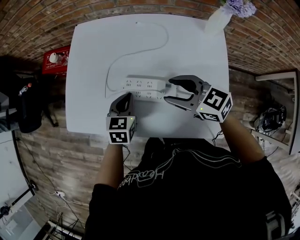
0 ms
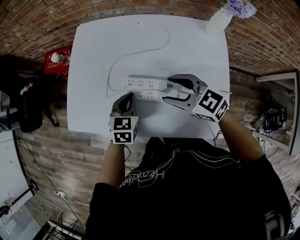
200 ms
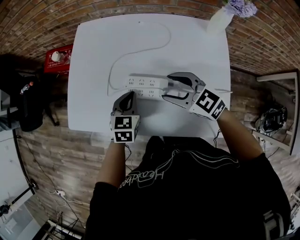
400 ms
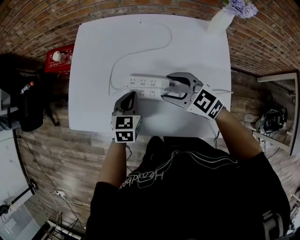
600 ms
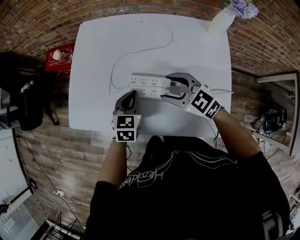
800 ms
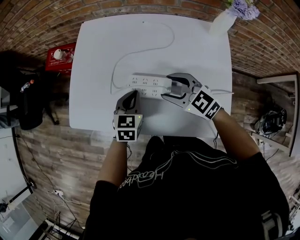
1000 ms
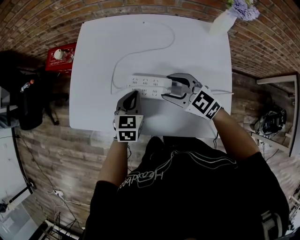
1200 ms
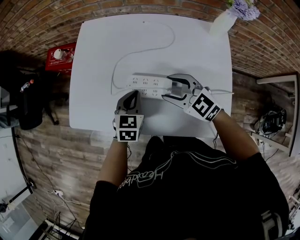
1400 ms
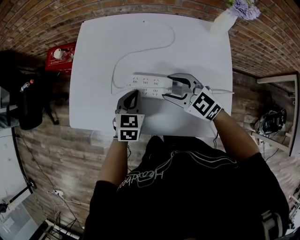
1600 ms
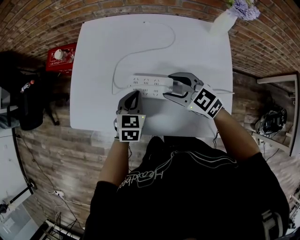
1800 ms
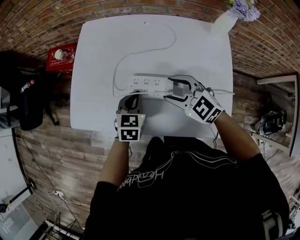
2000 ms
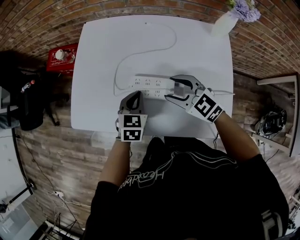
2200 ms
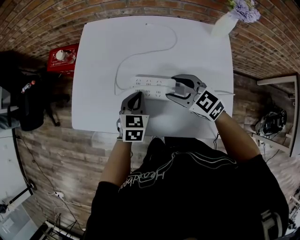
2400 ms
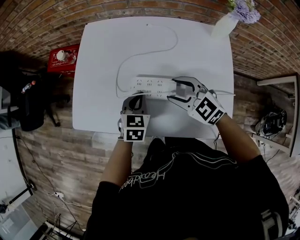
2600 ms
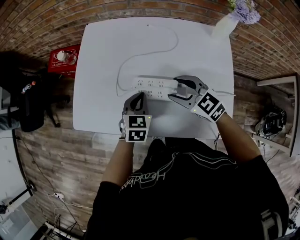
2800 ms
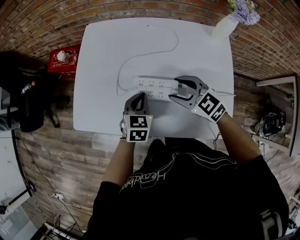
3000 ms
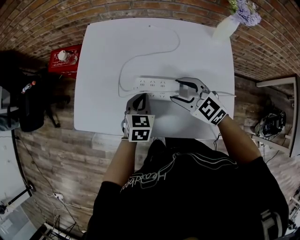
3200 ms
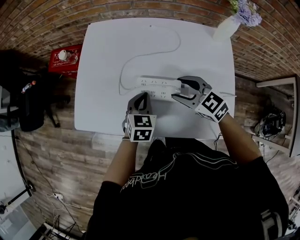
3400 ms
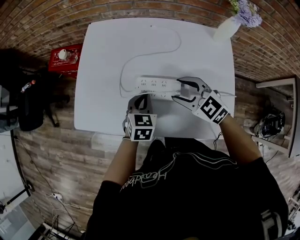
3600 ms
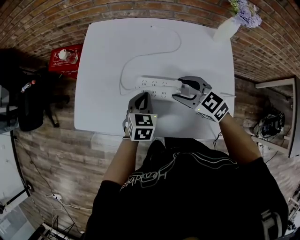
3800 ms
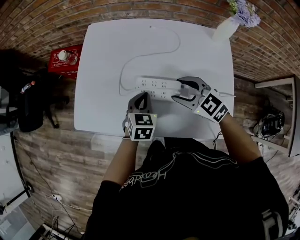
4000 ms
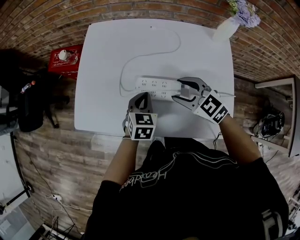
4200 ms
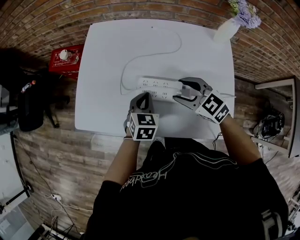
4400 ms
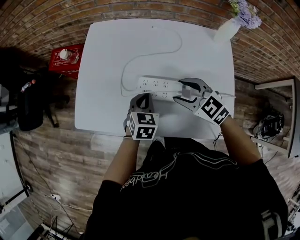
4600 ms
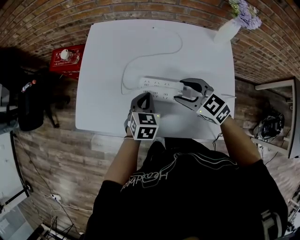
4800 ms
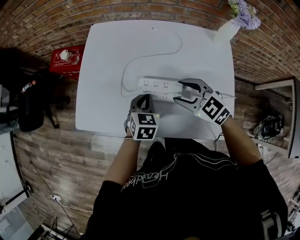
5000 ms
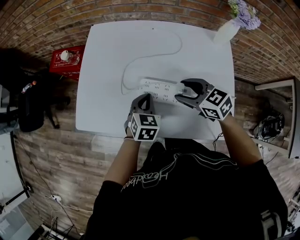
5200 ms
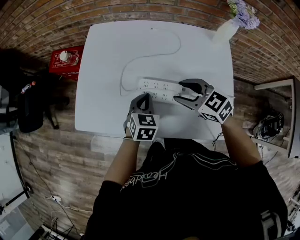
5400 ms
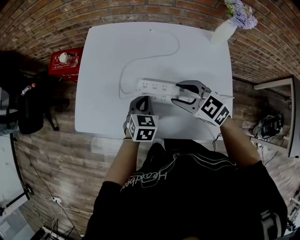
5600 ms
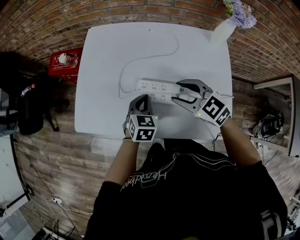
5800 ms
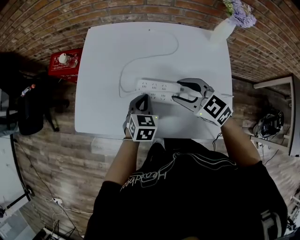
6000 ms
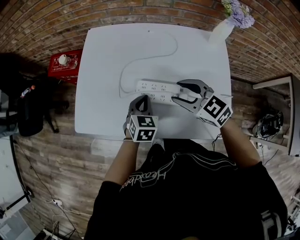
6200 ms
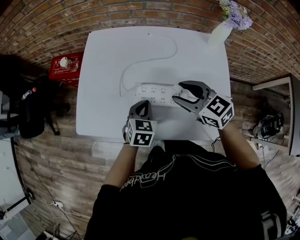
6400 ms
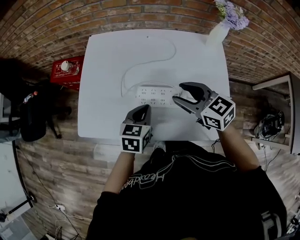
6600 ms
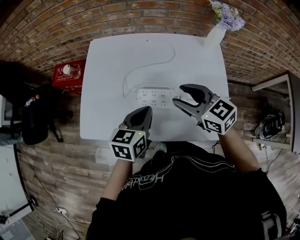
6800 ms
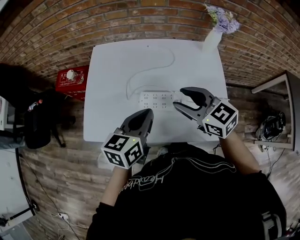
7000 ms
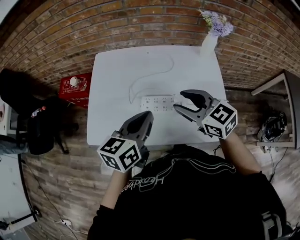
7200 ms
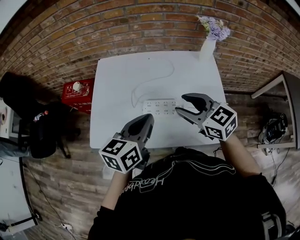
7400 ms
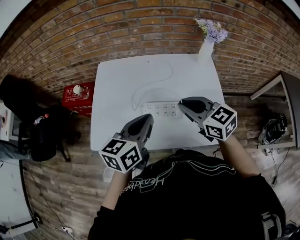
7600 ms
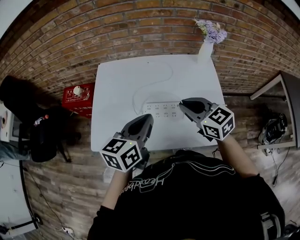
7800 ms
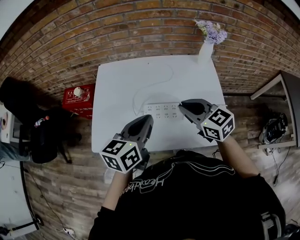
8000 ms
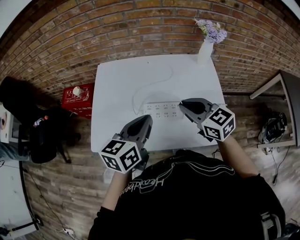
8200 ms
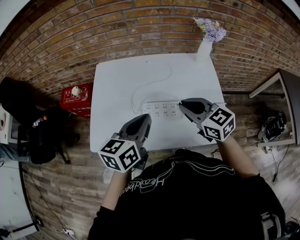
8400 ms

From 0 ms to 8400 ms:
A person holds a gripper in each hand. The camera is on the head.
From 0 ms to 1400 ms: The grippers move only a little.
From 1400 ms to 4200 ms: The grippers stay close to where they were, moving slightly.
From 4200 ms to 5600 ms: The grippers stay close to where they were, moving slightly.
From 5600 ms to 7000 ms: The right gripper heads upward, covering roughly 10 cm, and changes its angle by about 20 degrees, while the left gripper travels upward by some 15 cm, and turns by approximately 40 degrees.
From 7000 ms to 8400 ms: The left gripper changes place by approximately 5 cm. Meanwhile the right gripper closes up.

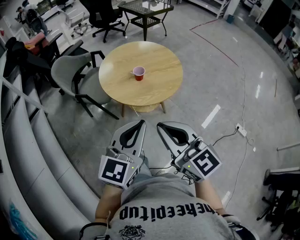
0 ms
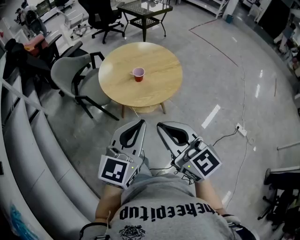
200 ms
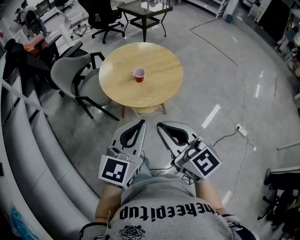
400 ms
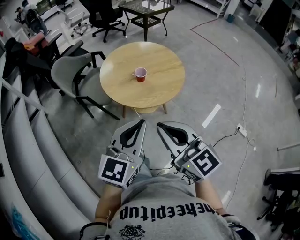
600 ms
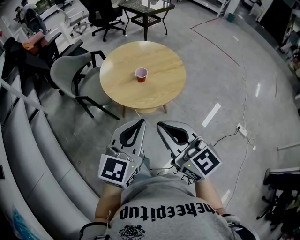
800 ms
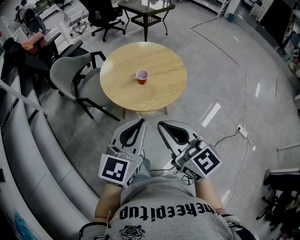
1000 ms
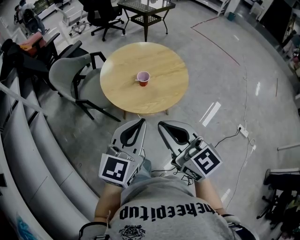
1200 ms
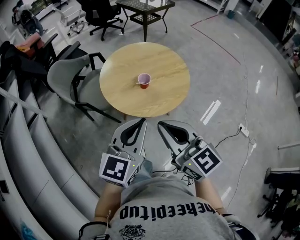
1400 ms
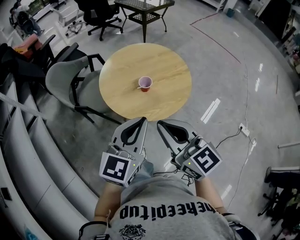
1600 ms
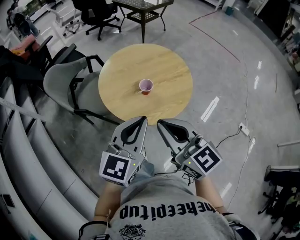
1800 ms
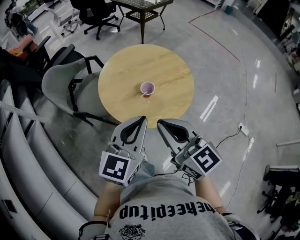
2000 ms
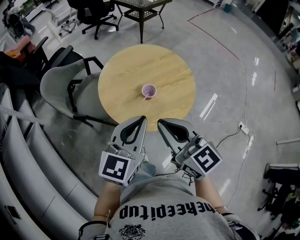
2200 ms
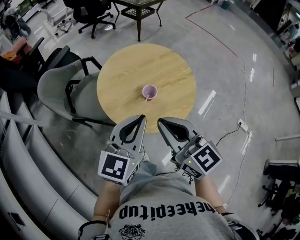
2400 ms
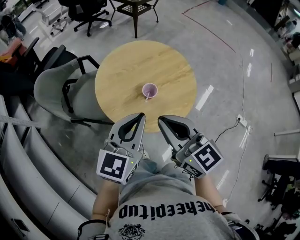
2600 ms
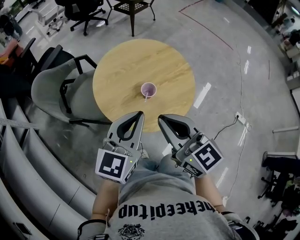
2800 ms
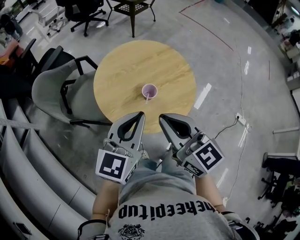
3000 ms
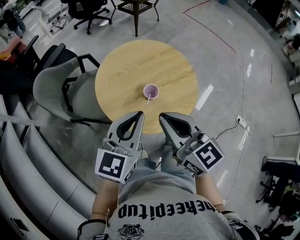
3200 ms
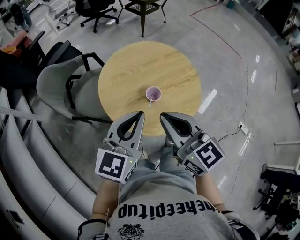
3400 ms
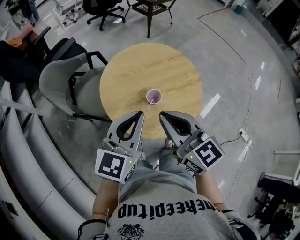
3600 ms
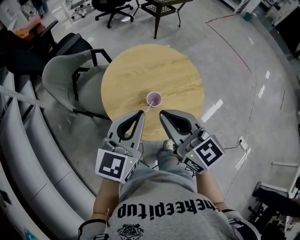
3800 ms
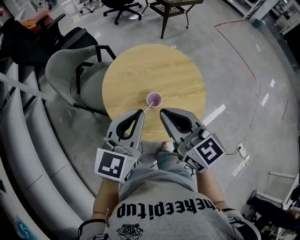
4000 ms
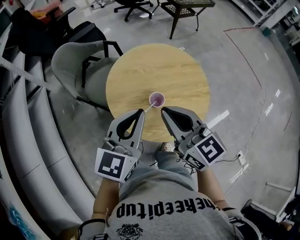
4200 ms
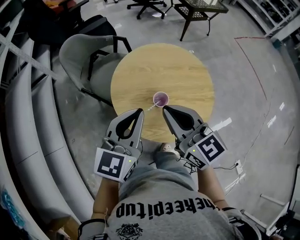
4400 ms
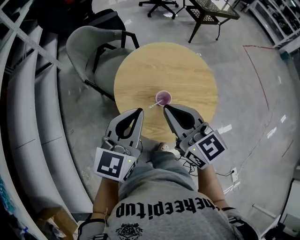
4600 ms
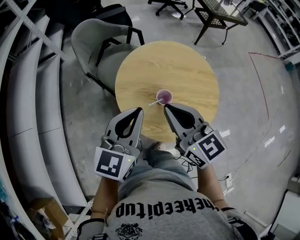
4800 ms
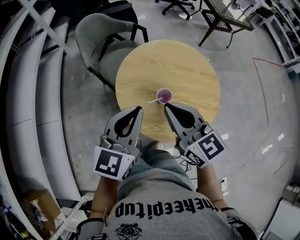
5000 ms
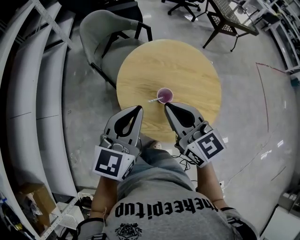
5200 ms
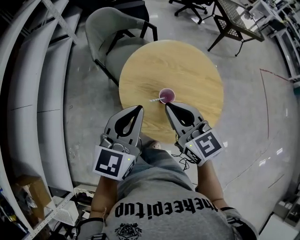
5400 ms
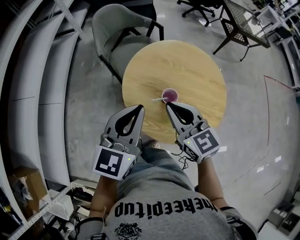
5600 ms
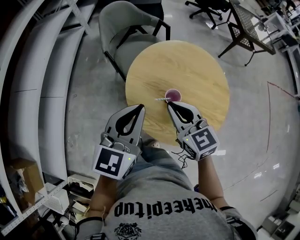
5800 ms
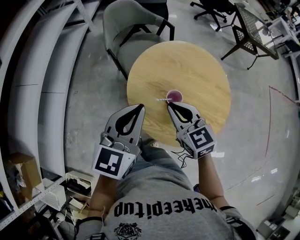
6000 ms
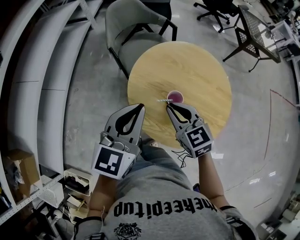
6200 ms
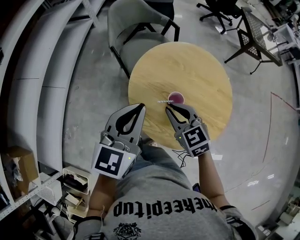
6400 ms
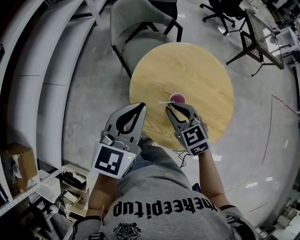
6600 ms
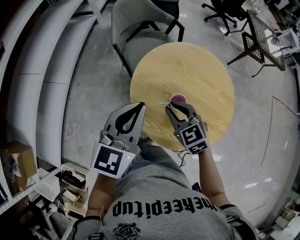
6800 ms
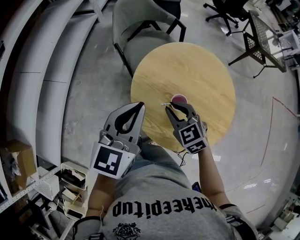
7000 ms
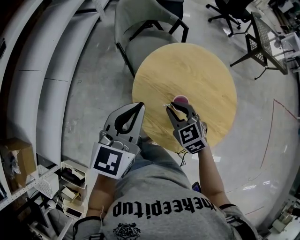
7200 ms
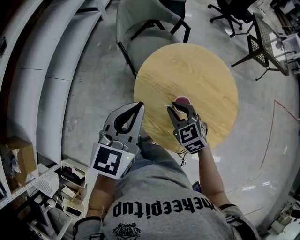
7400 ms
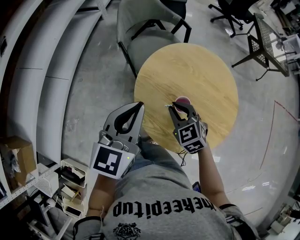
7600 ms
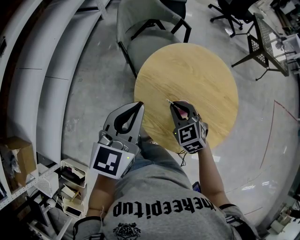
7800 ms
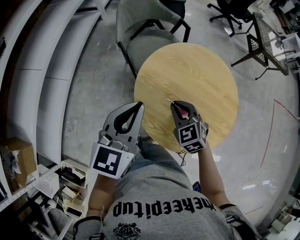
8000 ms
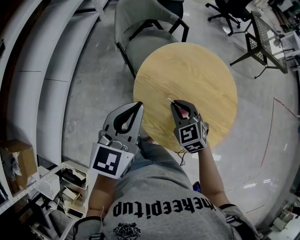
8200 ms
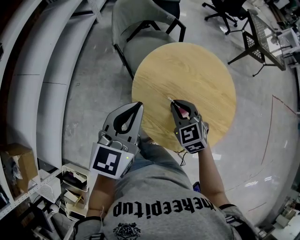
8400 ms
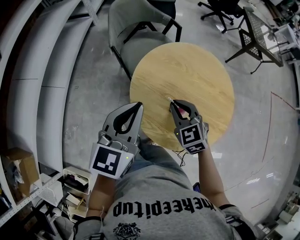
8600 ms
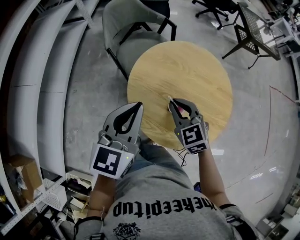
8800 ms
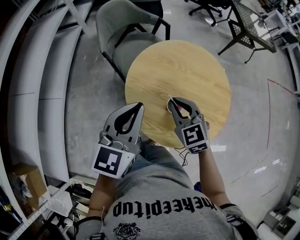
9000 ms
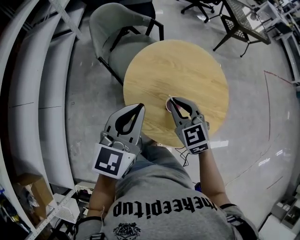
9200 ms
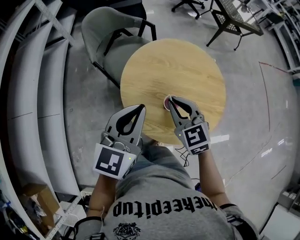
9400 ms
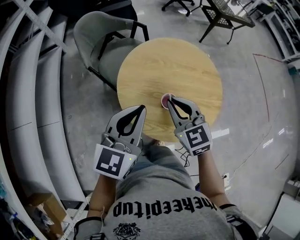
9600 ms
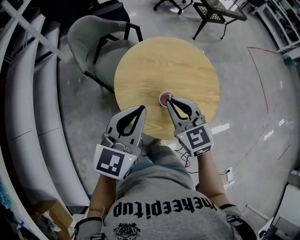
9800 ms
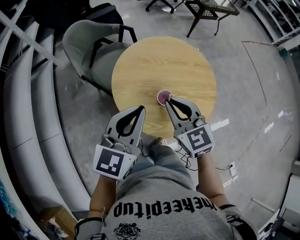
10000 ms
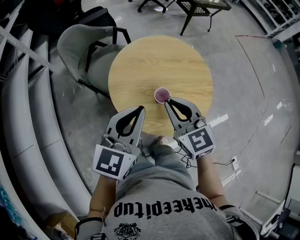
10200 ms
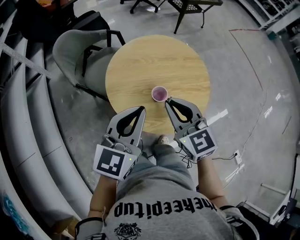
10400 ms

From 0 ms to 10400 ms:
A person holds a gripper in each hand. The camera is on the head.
From 0 ms to 1400 ms: Both grippers travel together forward, some 10 cm.
From 1400 ms to 3000 ms: Both grippers travel together forward, some 15 cm.
From 3000 ms to 4400 ms: The left gripper swivels roughly 30 degrees. Meanwhile the right gripper ends up approximately 10 cm from where it was, and changes its angle by about 30 degrees.
From 4400 ms to 6000 ms: The left gripper turns by roughly 30 degrees; the right gripper shifts about 10 cm downward, and turns by roughly 30 degrees.
From 6000 ms to 7400 ms: The right gripper is displaced downward by roughly 10 cm, and swivels roughly 20 degrees.
From 7400 ms to 9000 ms: The right gripper is displaced upward by approximately 5 cm.
From 9000 ms to 10400 ms: The right gripper shifts some 10 cm upward, and turns by approximately 30 degrees. The left gripper changes place by approximately 5 cm, and changes its angle by some 30 degrees.

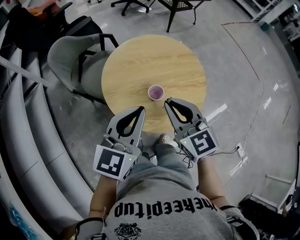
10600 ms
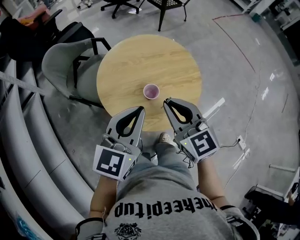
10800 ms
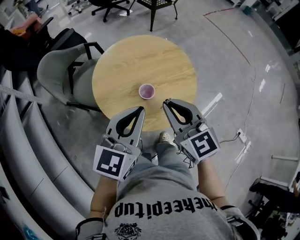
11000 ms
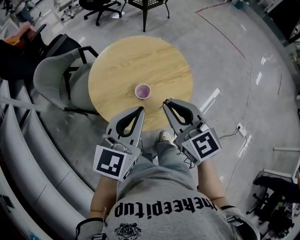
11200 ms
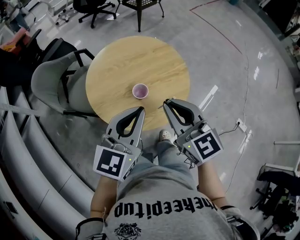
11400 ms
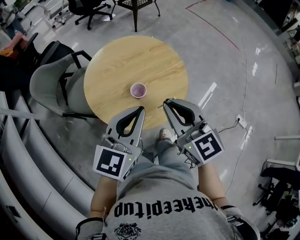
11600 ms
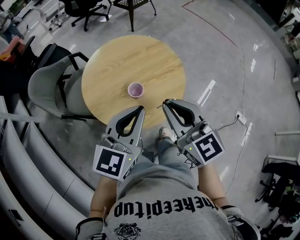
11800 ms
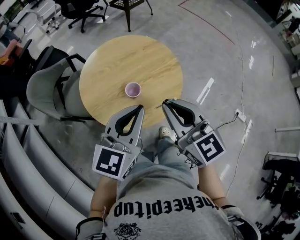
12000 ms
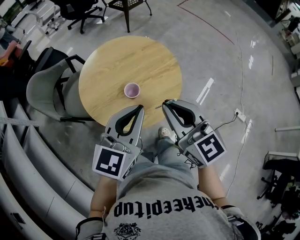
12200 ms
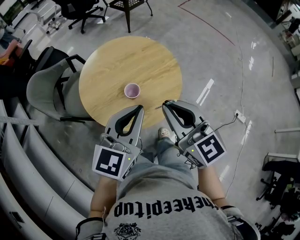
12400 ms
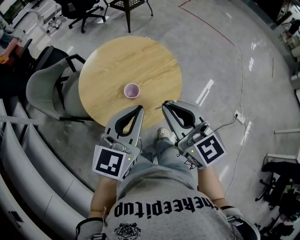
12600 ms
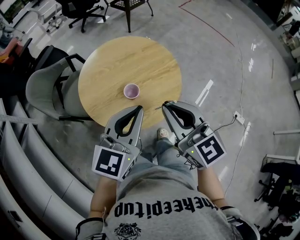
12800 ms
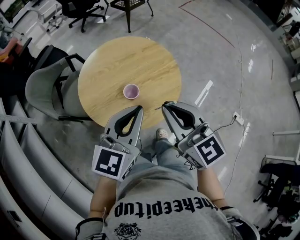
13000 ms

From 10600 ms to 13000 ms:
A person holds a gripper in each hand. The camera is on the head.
From 10600 ms to 11800 ms: The left gripper goes some 5 cm to the right; the right gripper moves backward, to the right and upward, about 10 cm.
From 11800 ms to 13000 ms: There are only small adjustments of the grippers.

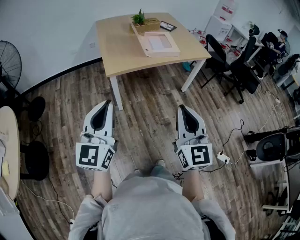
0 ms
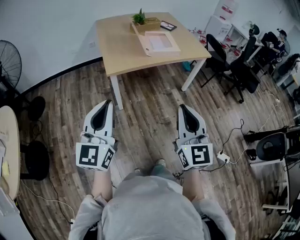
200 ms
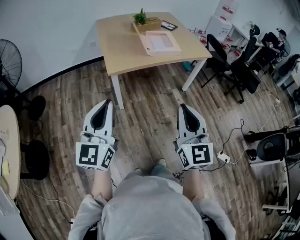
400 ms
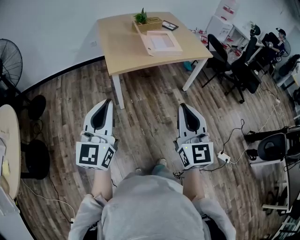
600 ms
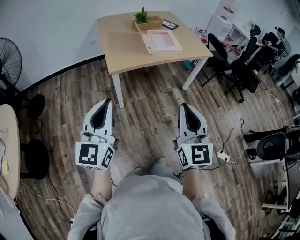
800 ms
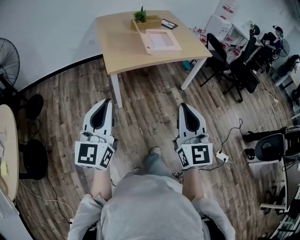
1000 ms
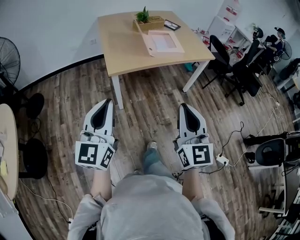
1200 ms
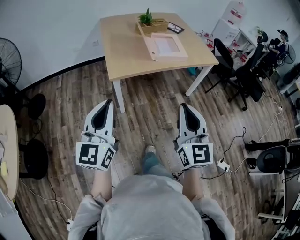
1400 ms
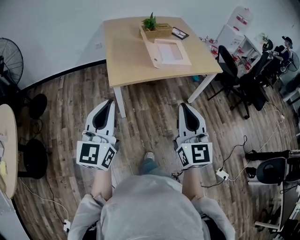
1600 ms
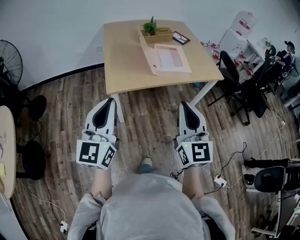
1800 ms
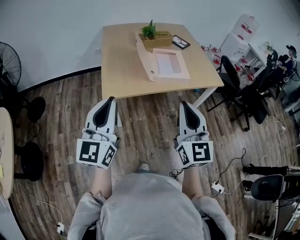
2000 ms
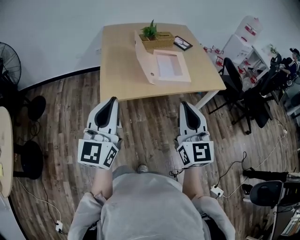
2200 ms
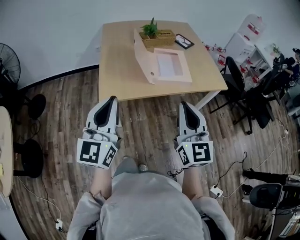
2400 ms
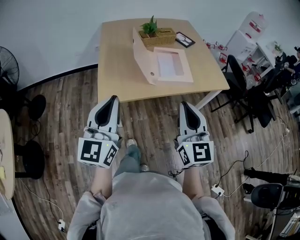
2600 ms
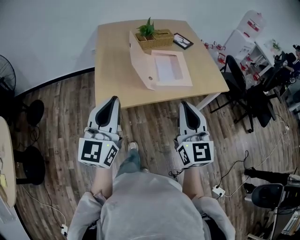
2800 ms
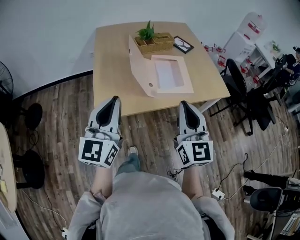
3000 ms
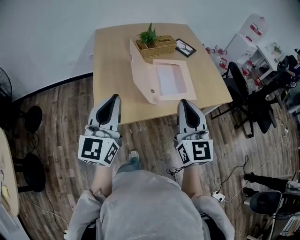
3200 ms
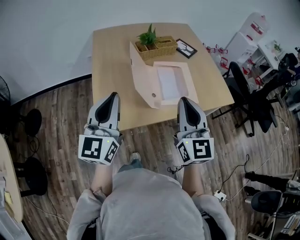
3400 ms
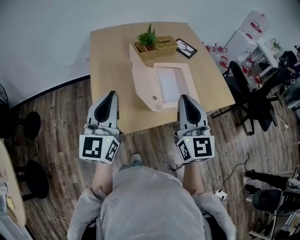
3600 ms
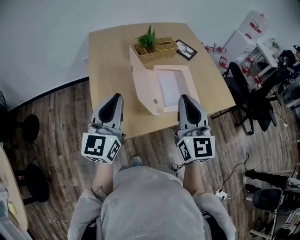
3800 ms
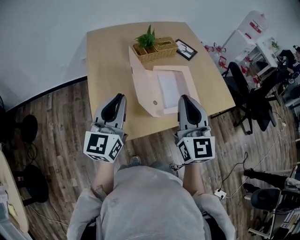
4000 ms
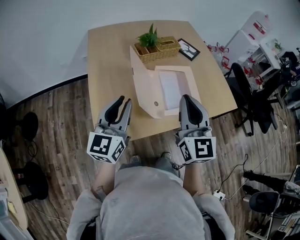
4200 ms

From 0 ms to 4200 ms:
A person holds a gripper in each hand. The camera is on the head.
From 0 ms to 1400 ms: The grippers both shift forward by roughly 10 cm.
From 1400 ms to 2800 ms: Both grippers travel together forward, approximately 30 cm.
From 2800 ms to 4200 ms: Both grippers travel together forward, about 25 cm.
